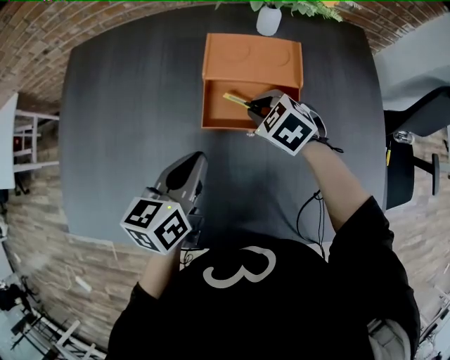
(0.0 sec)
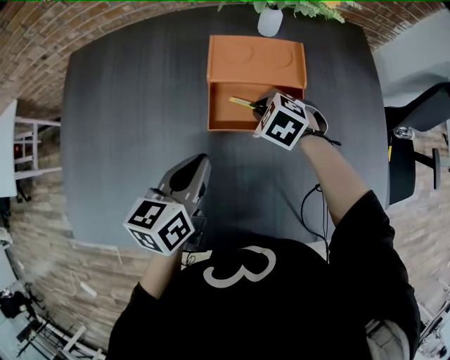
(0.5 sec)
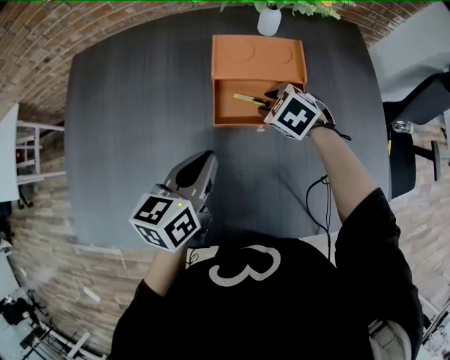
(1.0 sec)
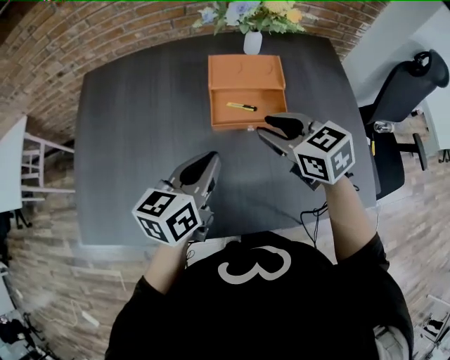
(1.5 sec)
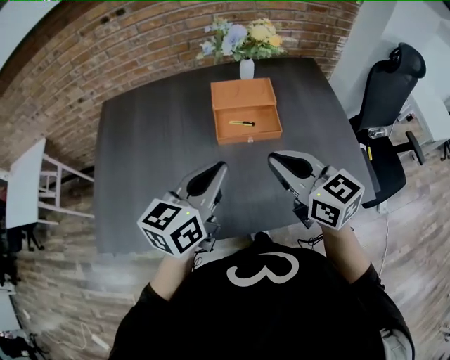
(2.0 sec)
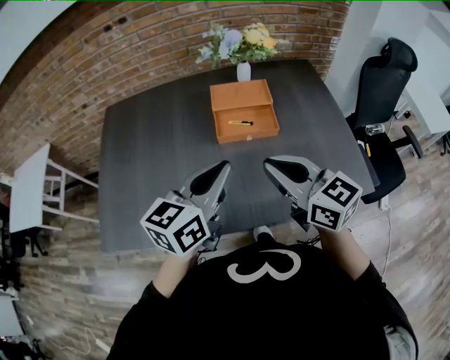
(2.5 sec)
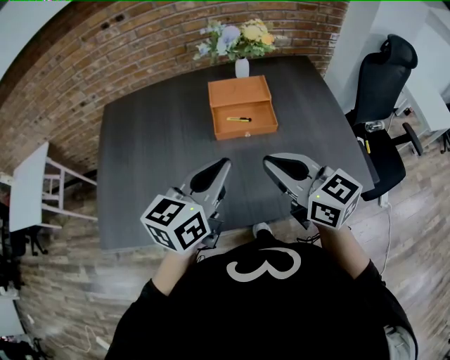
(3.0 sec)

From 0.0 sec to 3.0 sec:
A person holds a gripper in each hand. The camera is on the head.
From 0.0 sec to 1.5 sec: The left gripper goes roughly 10 cm upward and backward, while the right gripper shifts about 20 cm upward and backward, and swivels approximately 30 degrees.
From 1.5 sec to 3.0 sec: The left gripper moves upward and backward, about 15 cm. Meanwhile the right gripper moves backward and upward, approximately 20 cm, rotates approximately 30 degrees, and closes.

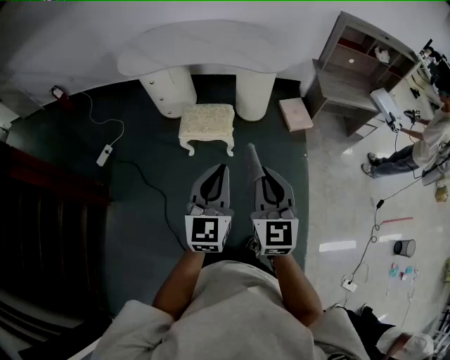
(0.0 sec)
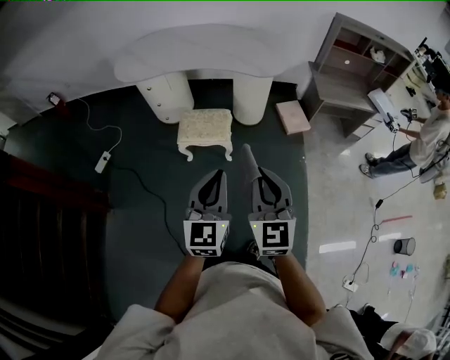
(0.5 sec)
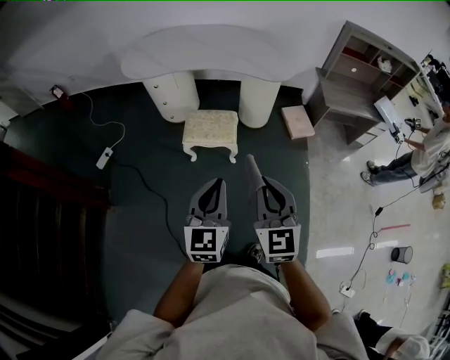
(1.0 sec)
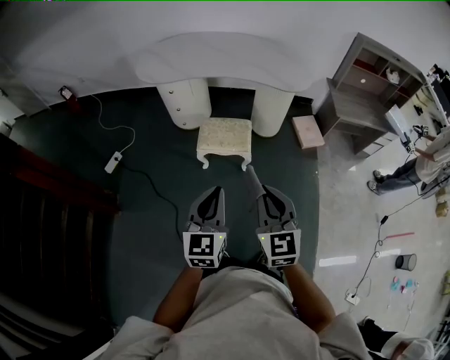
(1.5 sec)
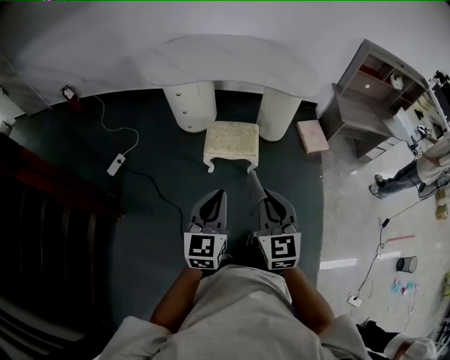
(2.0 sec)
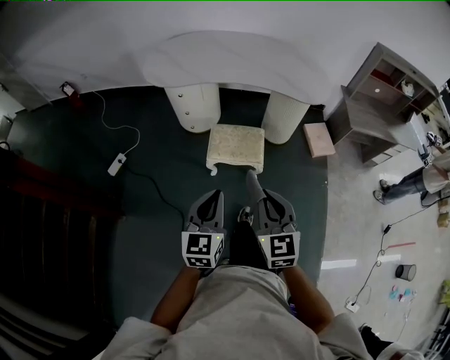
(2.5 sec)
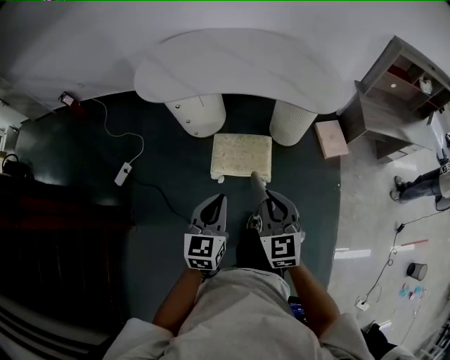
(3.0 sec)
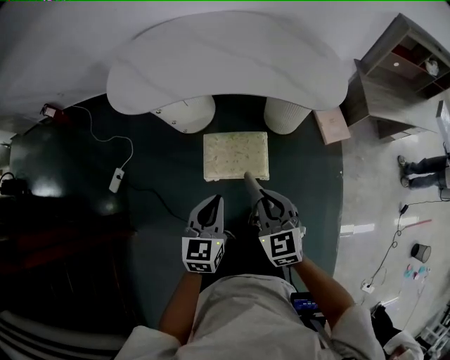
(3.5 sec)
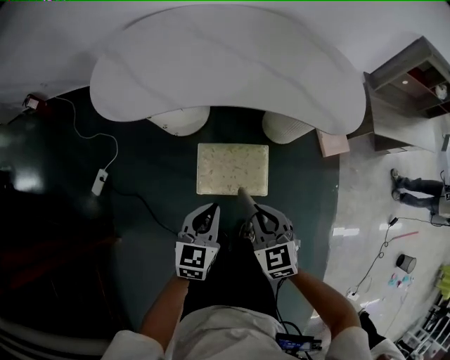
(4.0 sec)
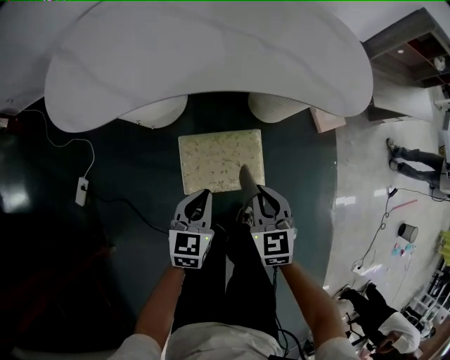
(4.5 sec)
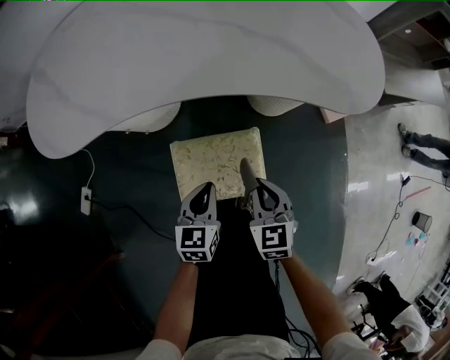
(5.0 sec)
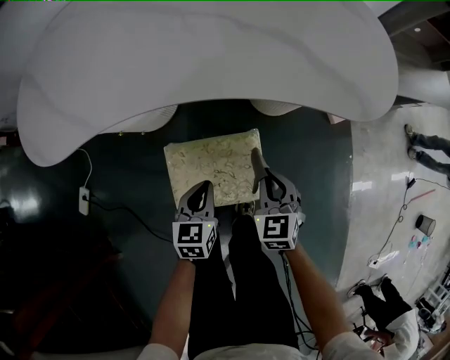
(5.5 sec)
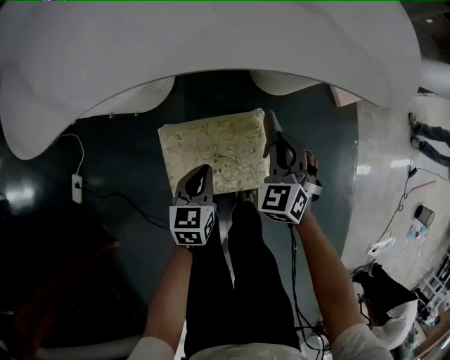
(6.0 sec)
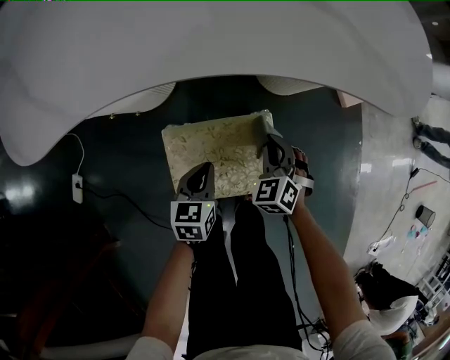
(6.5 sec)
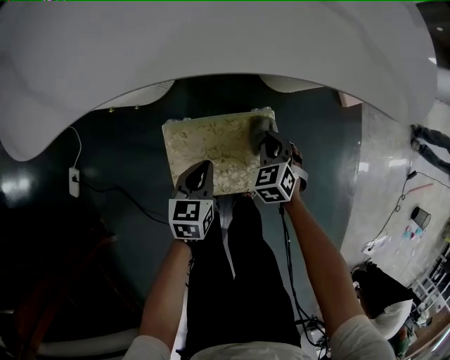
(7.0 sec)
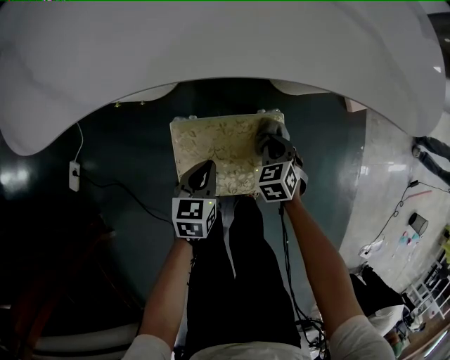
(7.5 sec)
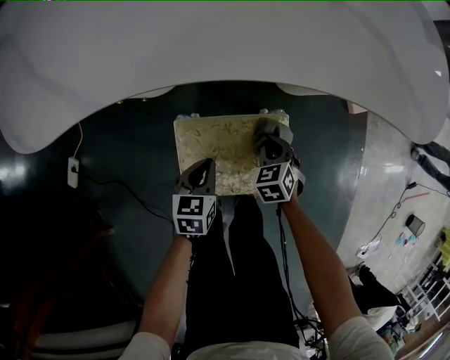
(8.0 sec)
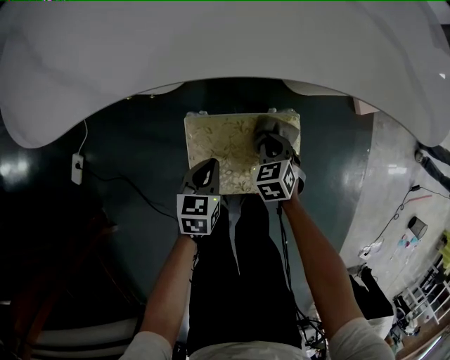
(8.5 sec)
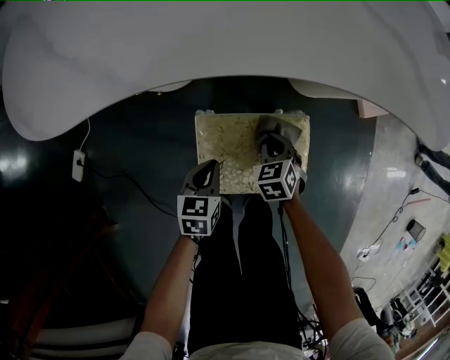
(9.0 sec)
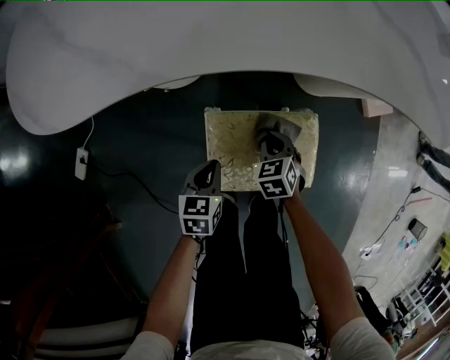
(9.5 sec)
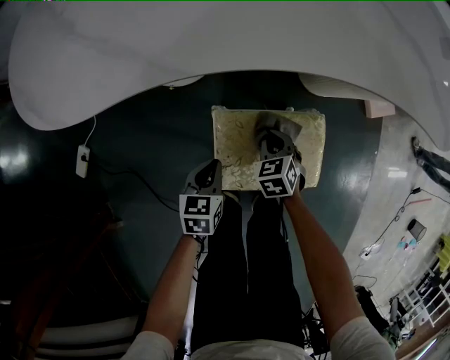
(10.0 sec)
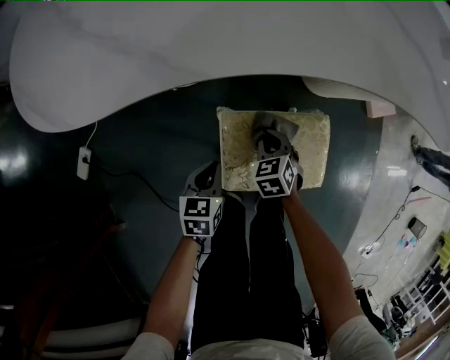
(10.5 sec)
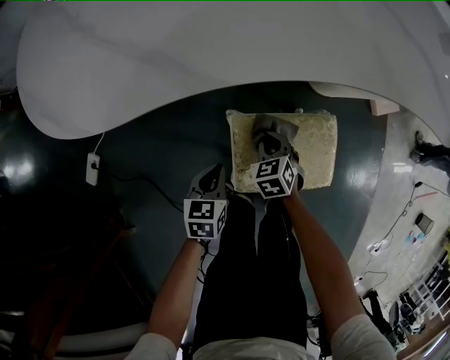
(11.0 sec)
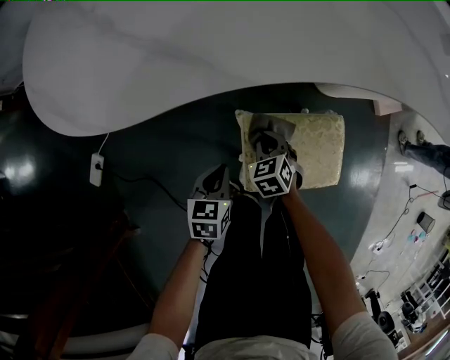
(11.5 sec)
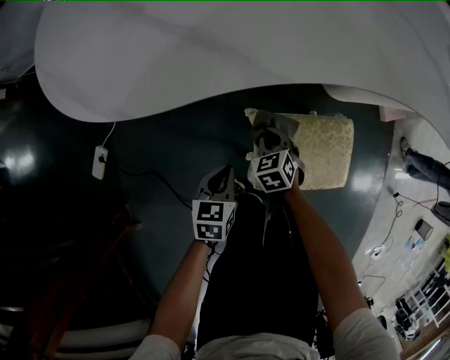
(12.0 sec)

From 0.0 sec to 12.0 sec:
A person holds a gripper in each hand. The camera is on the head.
From 0.0 sec to 2.0 sec: The two grippers go some 20 cm to the left.
From 2.0 sec to 4.0 sec: The pair of grippers is taken forward, about 40 cm. The grippers both shift downward by some 20 cm. The left gripper rotates roughly 20 degrees; the right gripper turns by approximately 20 degrees.
From 4.0 sec to 6.0 sec: Both grippers move downward and forward, roughly 35 cm. The right gripper turns by roughly 30 degrees.
From 6.0 sec to 8.0 sec: The left gripper shifts about 10 cm to the left and downward; the right gripper is displaced downward and to the left by some 15 cm, and turns by approximately 20 degrees.
From 8.0 sec to 10.0 sec: The grippers both shift to the left by roughly 10 cm.
From 10.0 sec to 12.0 sec: The grippers both shift to the left by about 10 cm.

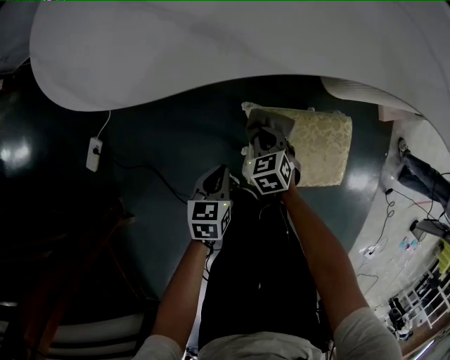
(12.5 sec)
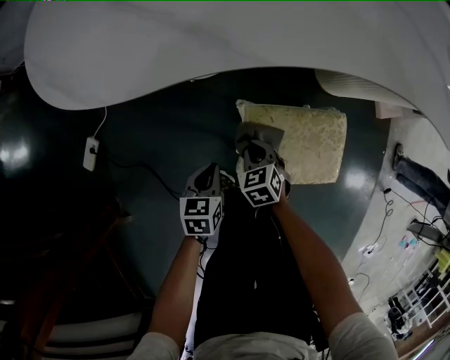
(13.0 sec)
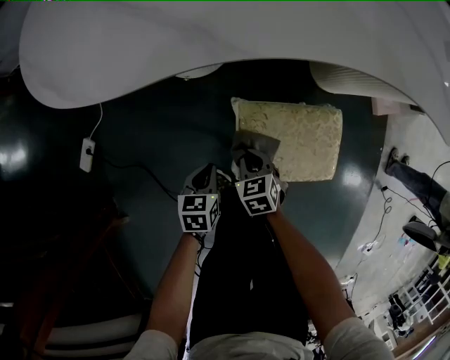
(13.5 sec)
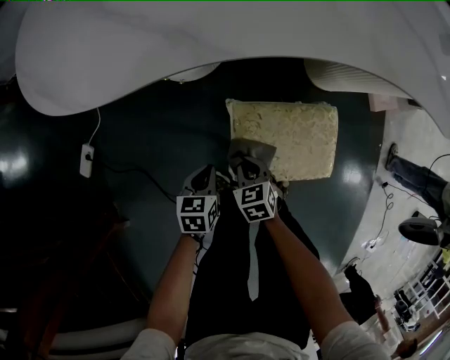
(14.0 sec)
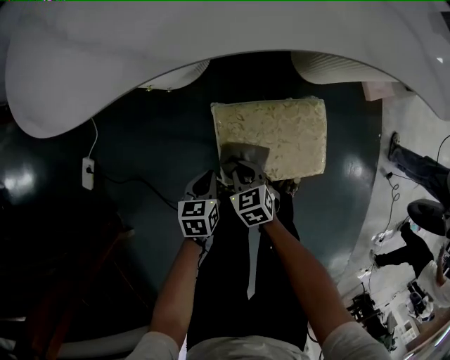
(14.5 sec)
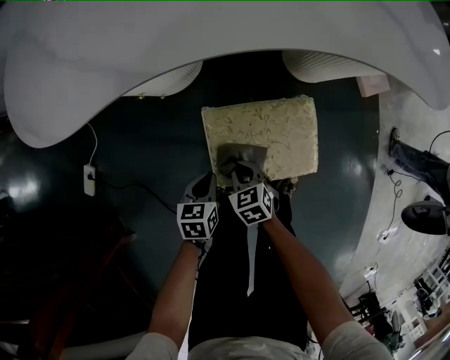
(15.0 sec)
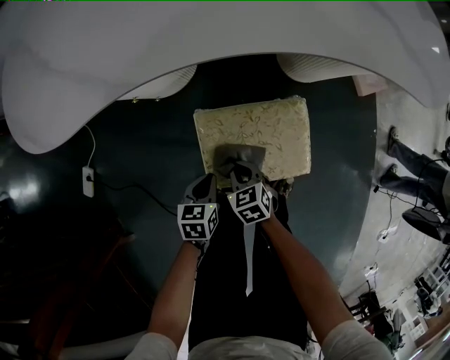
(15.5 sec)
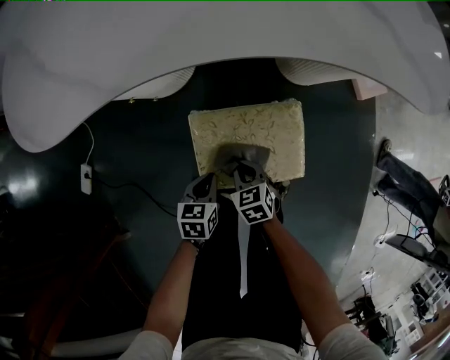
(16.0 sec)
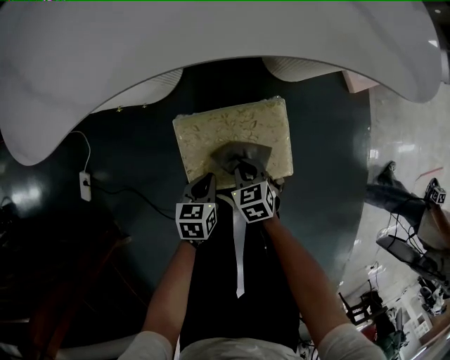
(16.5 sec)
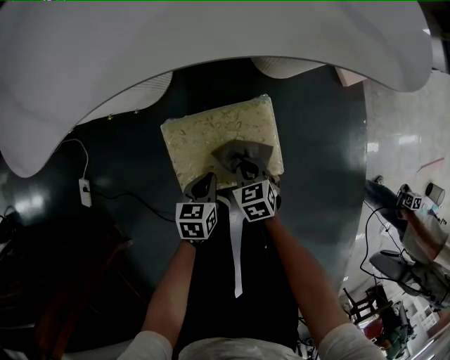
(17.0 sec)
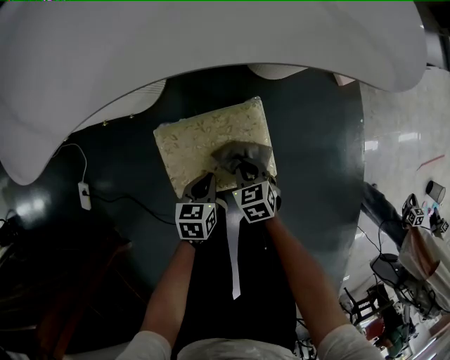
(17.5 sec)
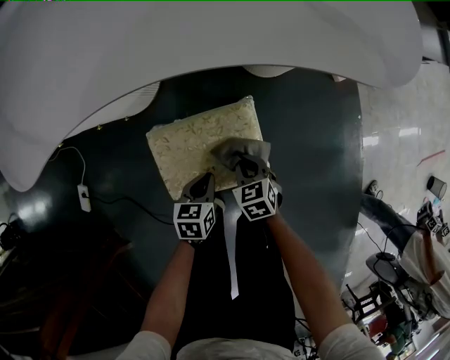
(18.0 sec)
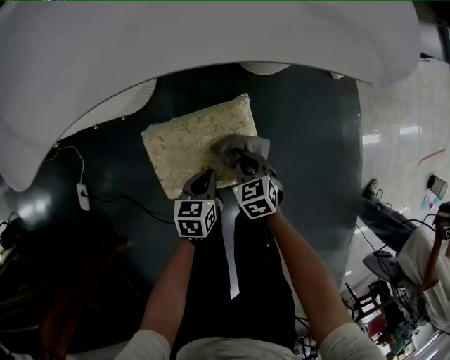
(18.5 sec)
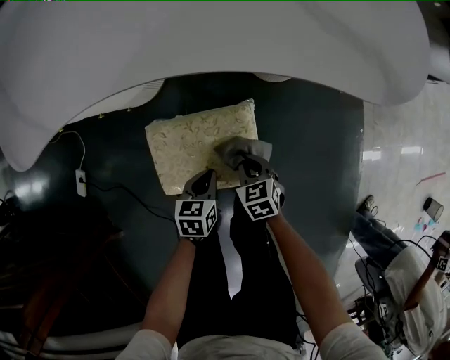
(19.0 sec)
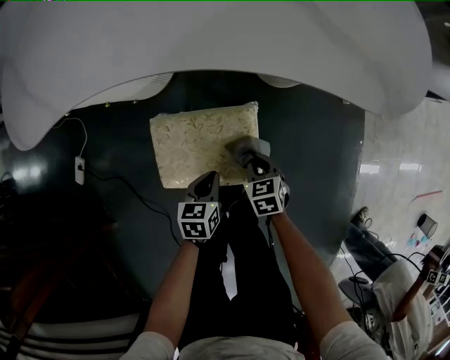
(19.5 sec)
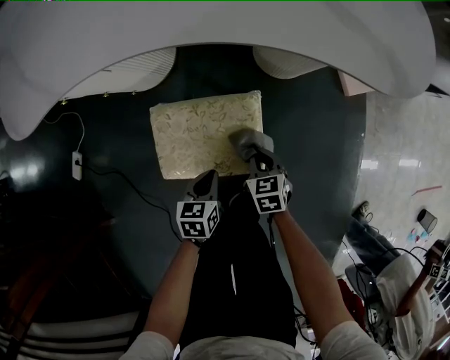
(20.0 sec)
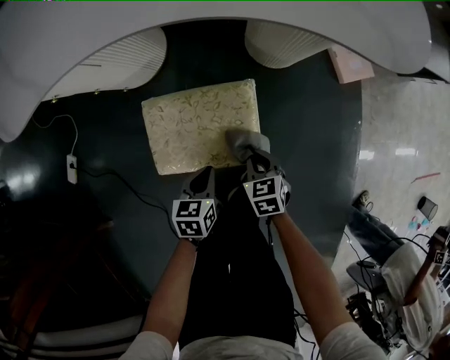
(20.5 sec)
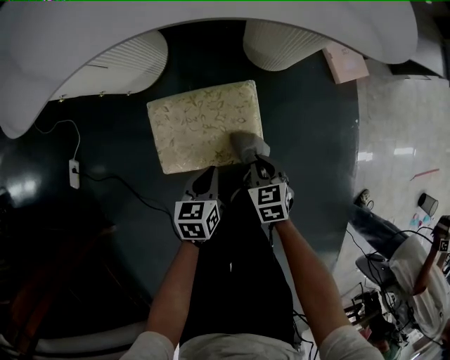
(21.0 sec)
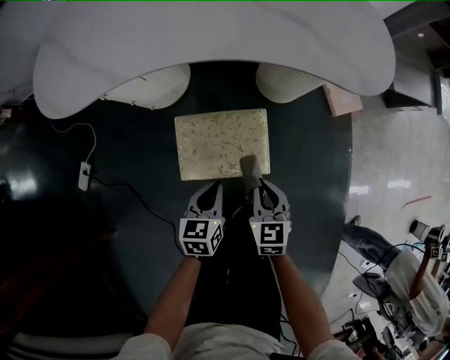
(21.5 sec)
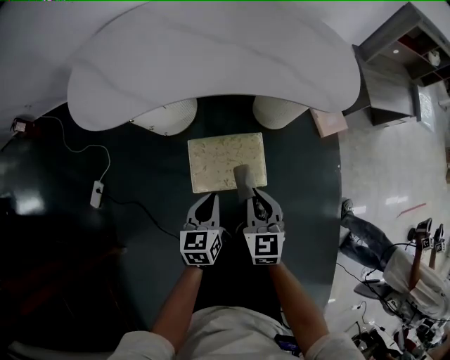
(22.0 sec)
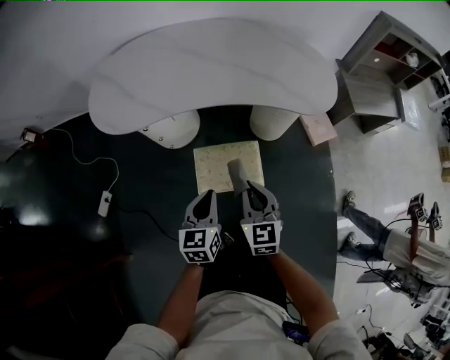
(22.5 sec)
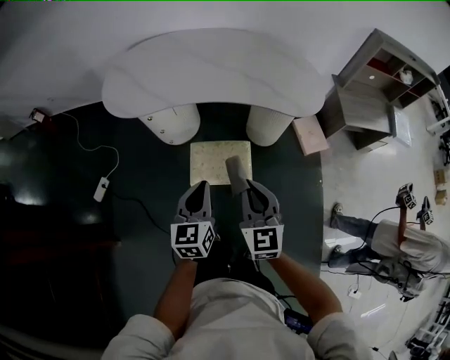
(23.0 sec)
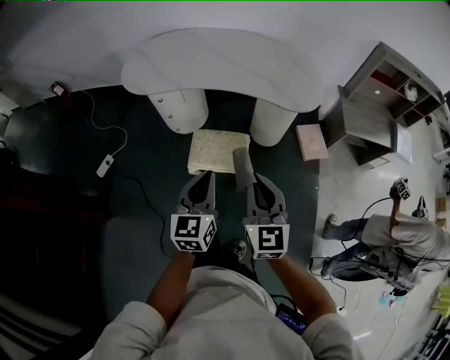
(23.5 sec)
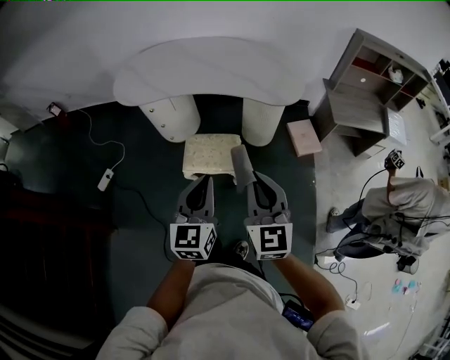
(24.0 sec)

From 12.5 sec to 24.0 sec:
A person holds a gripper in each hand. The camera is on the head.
From 12.5 sec to 14.5 sec: The right gripper is displaced backward by about 10 cm; the left gripper heads to the right, covering about 5 cm.
From 14.5 sec to 16.5 sec: Both grippers move to the right, about 15 cm.
From 16.5 sec to 18.5 sec: Both grippers travel together to the right, roughly 10 cm.
From 18.5 sec to 20.0 sec: The grippers make only small movements.
From 20.0 sec to 22.0 sec: The two grippers go about 30 cm upward. The right gripper rotates about 30 degrees; the left gripper changes its angle by roughly 20 degrees.
From 22.0 sec to 24.0 sec: The two grippers go some 40 cm upward, backward and to the right. The right gripper swivels some 30 degrees. Meanwhile the left gripper rotates some 30 degrees.
